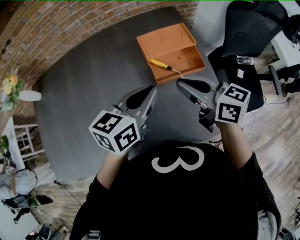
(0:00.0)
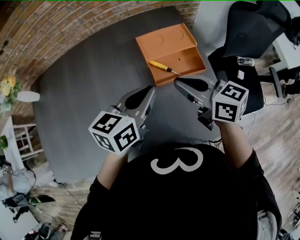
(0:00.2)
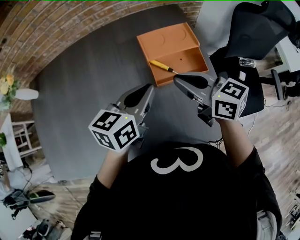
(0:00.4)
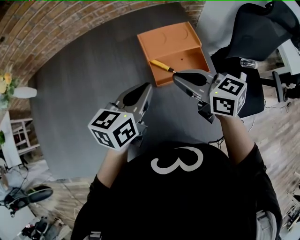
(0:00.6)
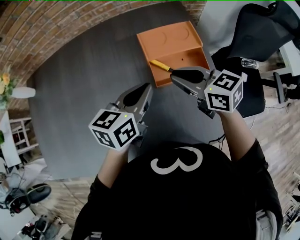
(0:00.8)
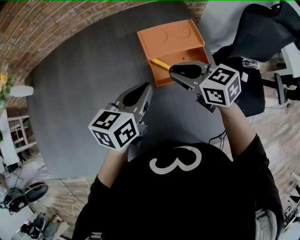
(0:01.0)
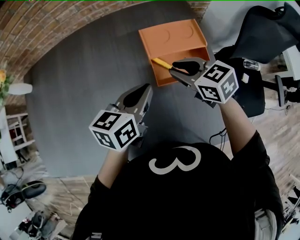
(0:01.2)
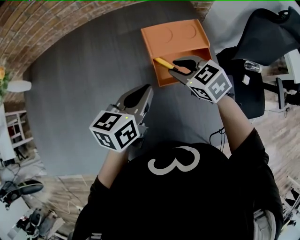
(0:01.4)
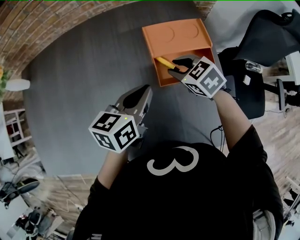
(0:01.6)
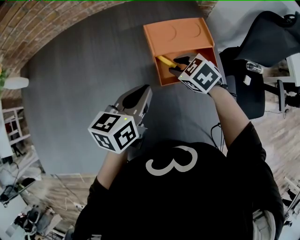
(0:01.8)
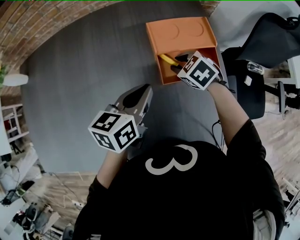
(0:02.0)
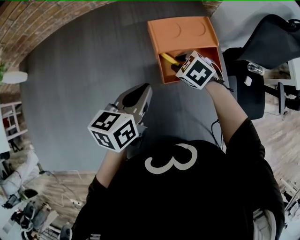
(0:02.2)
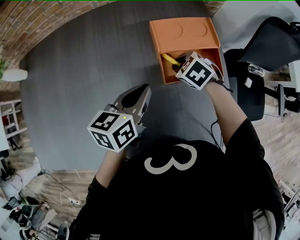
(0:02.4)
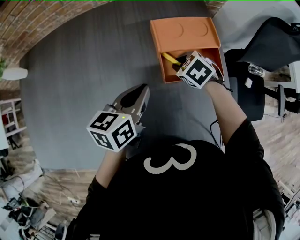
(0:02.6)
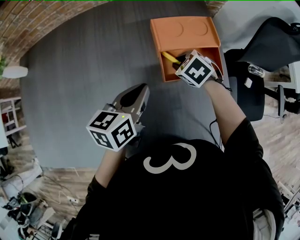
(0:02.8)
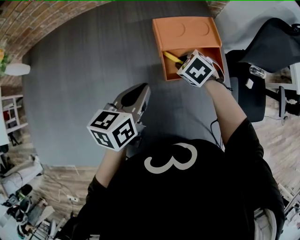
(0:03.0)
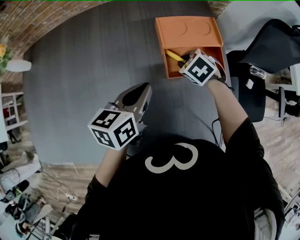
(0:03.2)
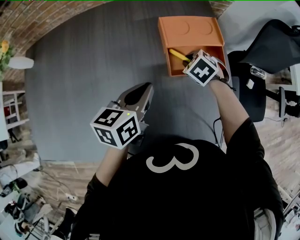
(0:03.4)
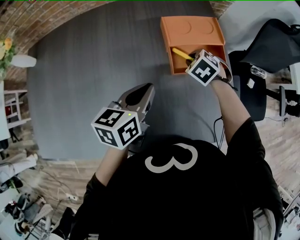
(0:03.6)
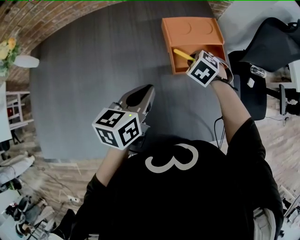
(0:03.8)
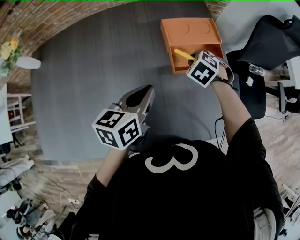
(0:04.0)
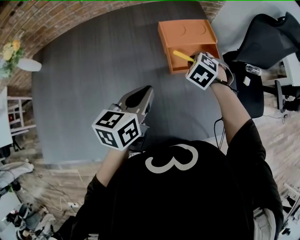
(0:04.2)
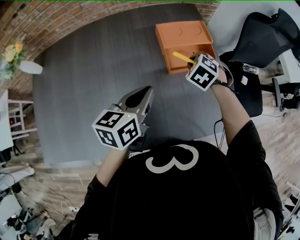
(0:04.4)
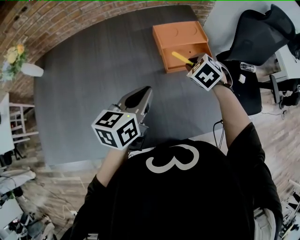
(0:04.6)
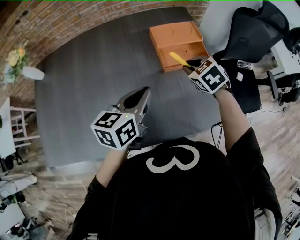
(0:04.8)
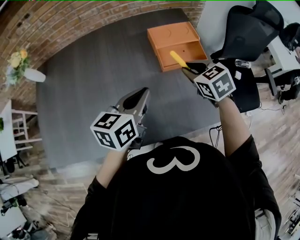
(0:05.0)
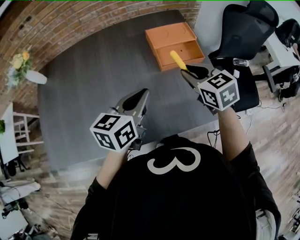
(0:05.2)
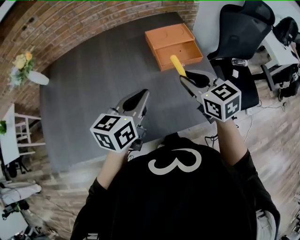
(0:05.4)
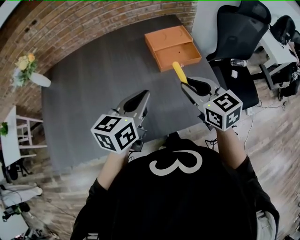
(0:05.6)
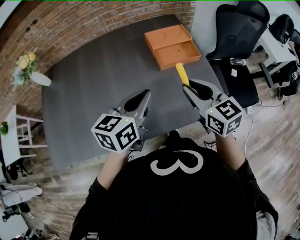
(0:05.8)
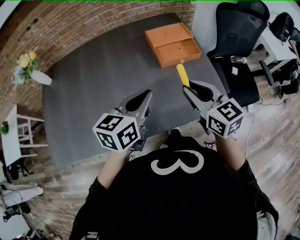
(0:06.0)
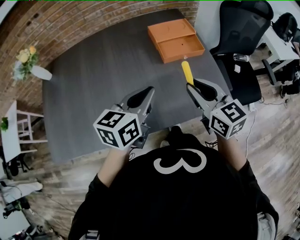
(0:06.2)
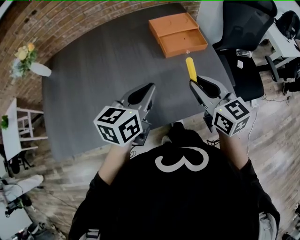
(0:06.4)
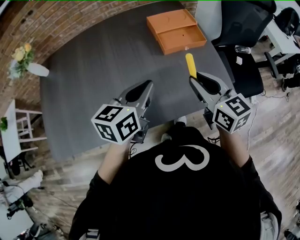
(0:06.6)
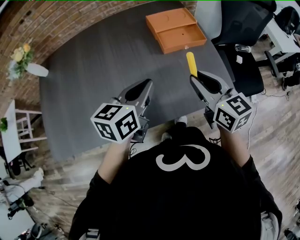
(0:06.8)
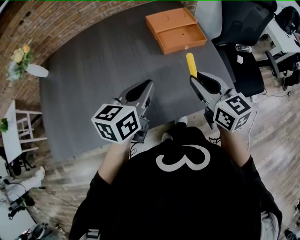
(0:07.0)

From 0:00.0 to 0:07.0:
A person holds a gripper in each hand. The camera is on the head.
From 0:00.0 to 0:01.4: The left gripper is displaced downward and forward by approximately 10 cm, while the right gripper moves downward and forward, roughly 15 cm, angles its fingers downward, by some 30 degrees, and opens up.
From 0:01.4 to 0:02.8: The right gripper shifts about 10 cm downward, and turns by roughly 20 degrees.
From 0:02.8 to 0:04.2: The left gripper goes approximately 5 cm backward. Meanwhile the right gripper travels upward by approximately 5 cm, and changes its angle by some 20 degrees.
From 0:04.2 to 0:05.6: The right gripper heads backward and upward, covering roughly 25 cm, and tips its fingers upward by roughly 40 degrees. The left gripper shifts about 10 cm backward and upward.
From 0:05.6 to 0:07.0: There are only small adjustments of the grippers.

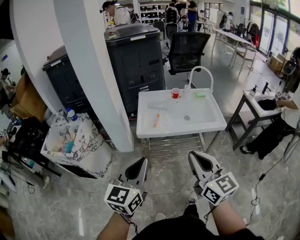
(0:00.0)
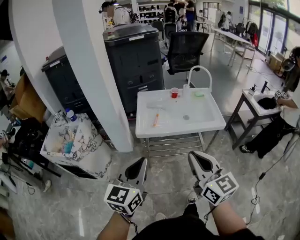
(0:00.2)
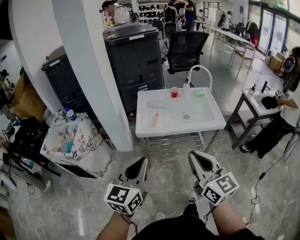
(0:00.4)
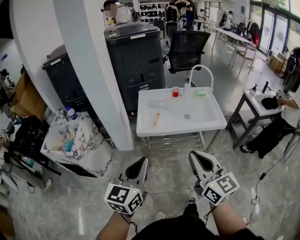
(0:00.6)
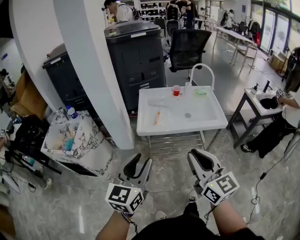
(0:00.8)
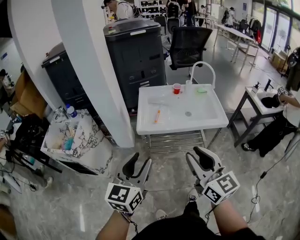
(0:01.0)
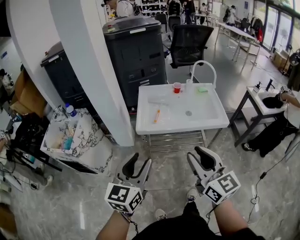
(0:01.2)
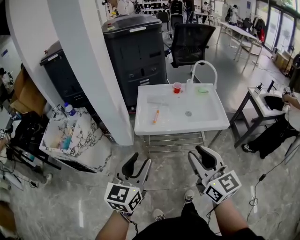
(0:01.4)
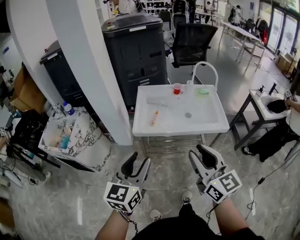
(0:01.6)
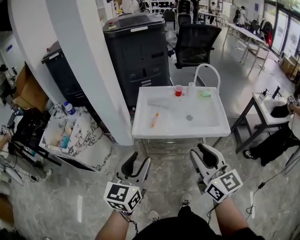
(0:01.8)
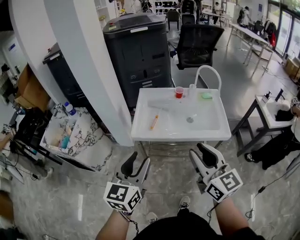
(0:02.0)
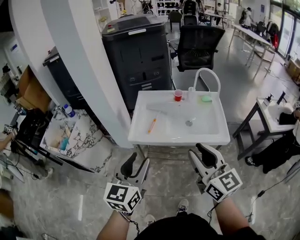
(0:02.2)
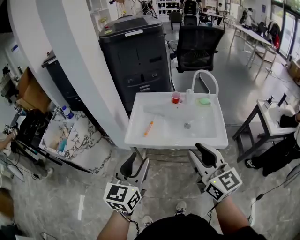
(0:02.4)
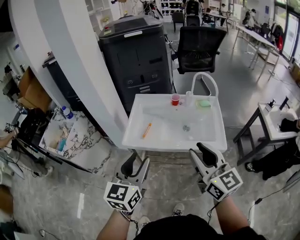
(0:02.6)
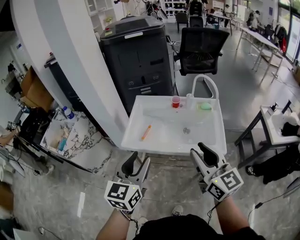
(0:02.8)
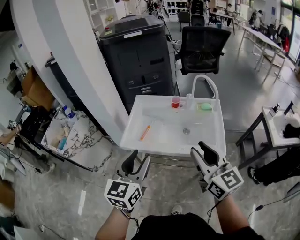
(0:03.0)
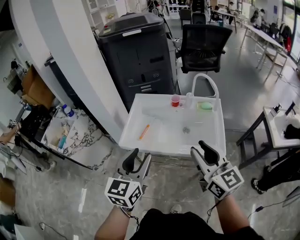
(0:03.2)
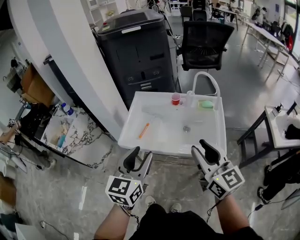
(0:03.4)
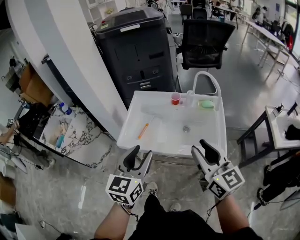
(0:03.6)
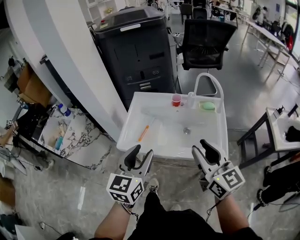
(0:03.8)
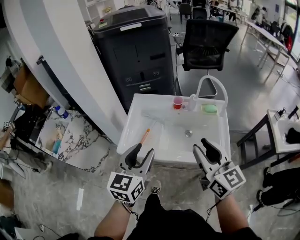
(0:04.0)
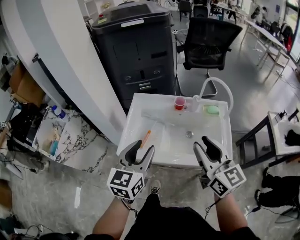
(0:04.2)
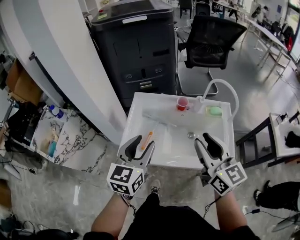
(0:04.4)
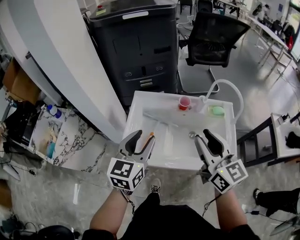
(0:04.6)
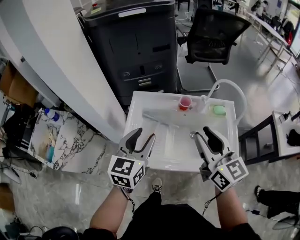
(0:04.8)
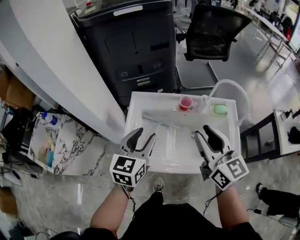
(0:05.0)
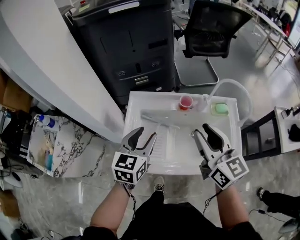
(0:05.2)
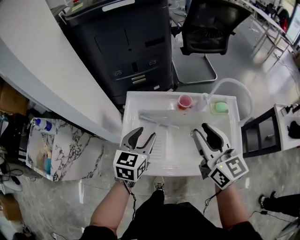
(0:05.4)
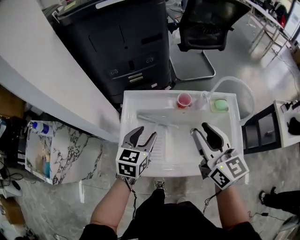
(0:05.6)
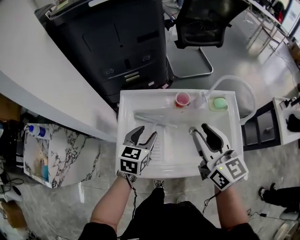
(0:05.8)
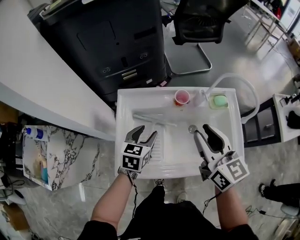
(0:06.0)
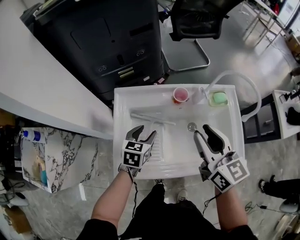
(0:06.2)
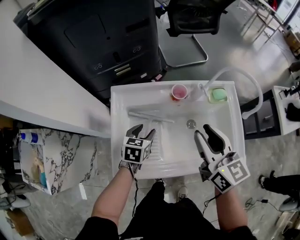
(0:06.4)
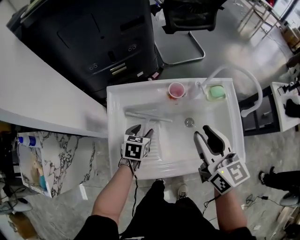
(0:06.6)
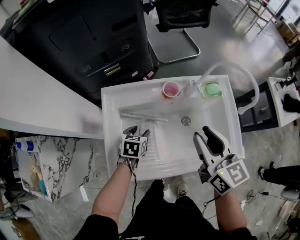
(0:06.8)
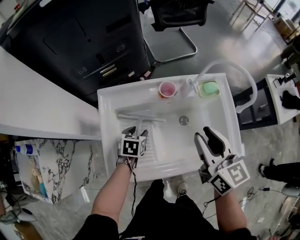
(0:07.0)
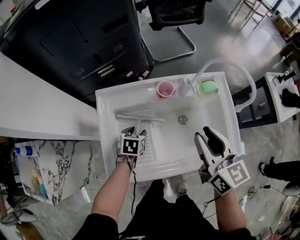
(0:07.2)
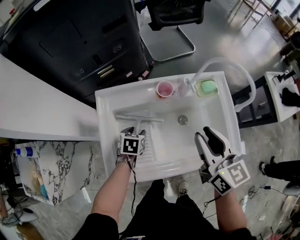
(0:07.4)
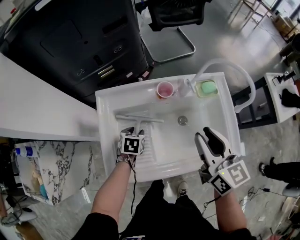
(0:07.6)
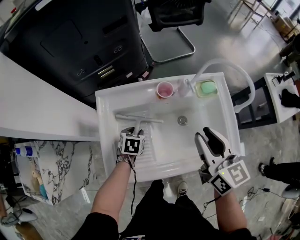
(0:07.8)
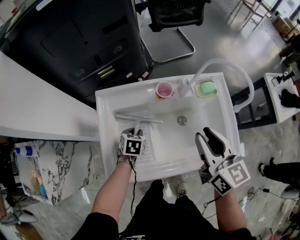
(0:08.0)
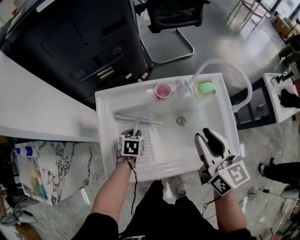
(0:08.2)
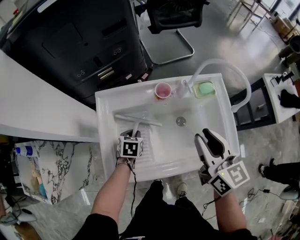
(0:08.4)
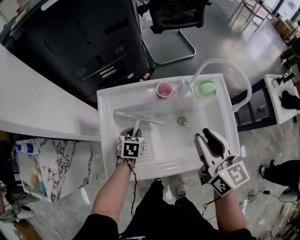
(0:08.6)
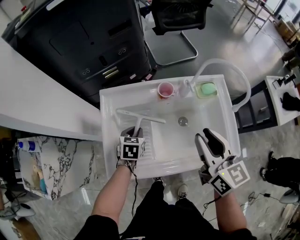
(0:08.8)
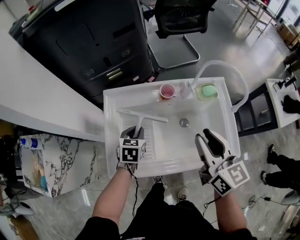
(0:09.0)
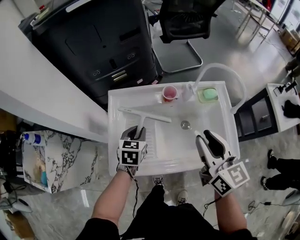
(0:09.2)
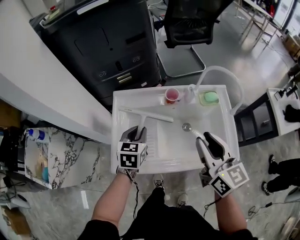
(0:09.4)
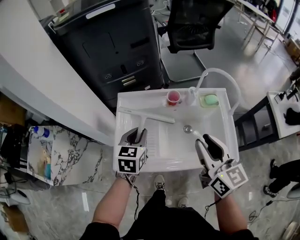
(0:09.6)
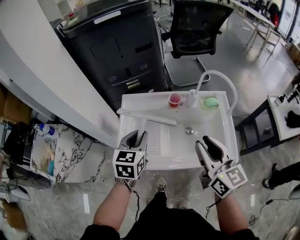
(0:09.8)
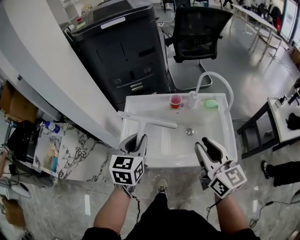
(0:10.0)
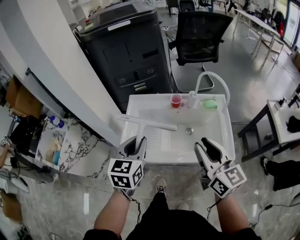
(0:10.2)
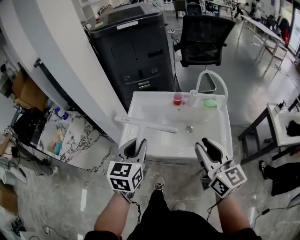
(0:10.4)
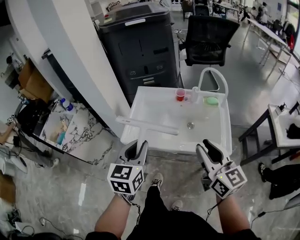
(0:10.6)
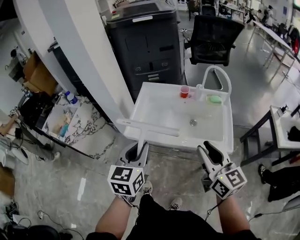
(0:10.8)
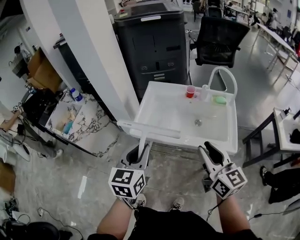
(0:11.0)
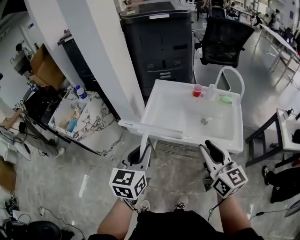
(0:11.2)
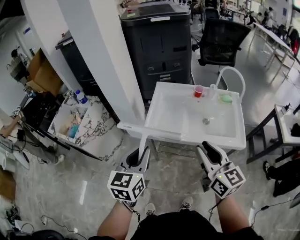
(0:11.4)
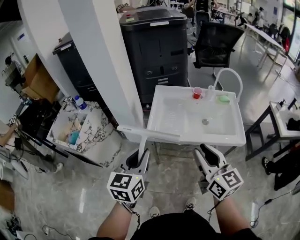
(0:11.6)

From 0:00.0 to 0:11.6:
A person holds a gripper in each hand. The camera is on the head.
From 0:00.0 to 0:01.4: The left gripper opens up, while the right gripper moves some 5 cm, and opens its fingers.
From 0:01.4 to 0:02.8: The grippers both shift to the right and forward by roughly 20 cm.
From 0:02.8 to 0:04.4: Both grippers move forward, about 20 cm.
From 0:04.4 to 0:05.8: The left gripper shifts approximately 25 cm forward and downward, and swivels some 20 degrees, while the right gripper travels forward and downward by approximately 15 cm.
From 0:05.8 to 0:07.2: The right gripper travels to the right and downward by roughly 10 cm. Meanwhile the left gripper is displaced downward by about 20 cm, and changes its angle by some 30 degrees.
From 0:07.2 to 0:08.8: The left gripper closes up.
From 0:08.8 to 0:10.2: The left gripper moves upward and backward, about 35 cm, and points its fingers about 30 degrees further upward, while the right gripper heads backward and upward, covering some 15 cm.
From 0:10.2 to 0:11.6: The right gripper is displaced to the left and backward by about 25 cm. The left gripper heads backward and to the left, covering some 25 cm.

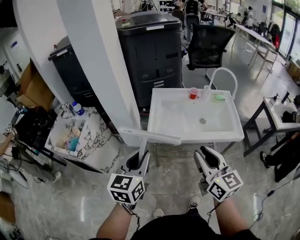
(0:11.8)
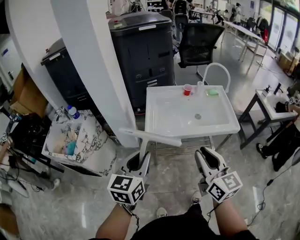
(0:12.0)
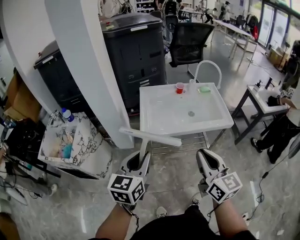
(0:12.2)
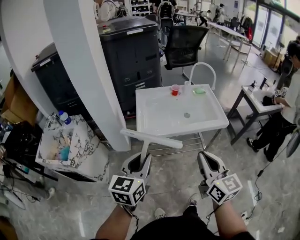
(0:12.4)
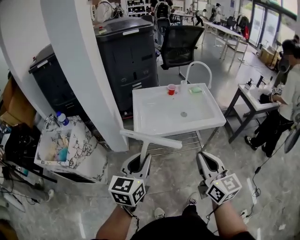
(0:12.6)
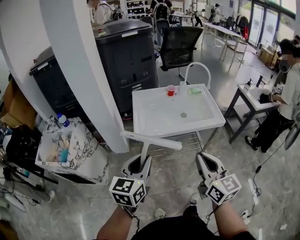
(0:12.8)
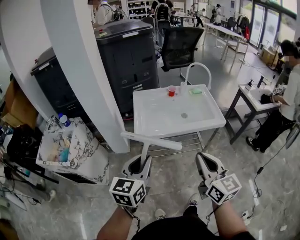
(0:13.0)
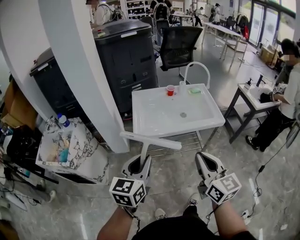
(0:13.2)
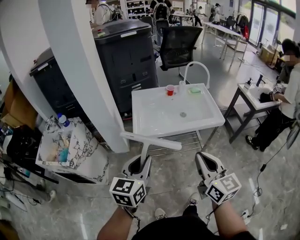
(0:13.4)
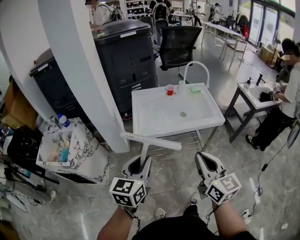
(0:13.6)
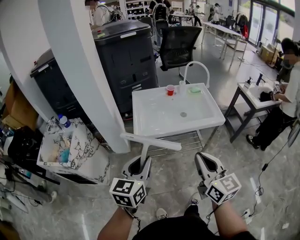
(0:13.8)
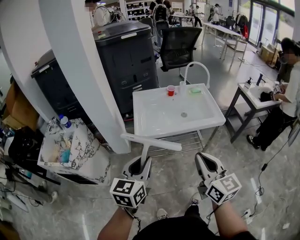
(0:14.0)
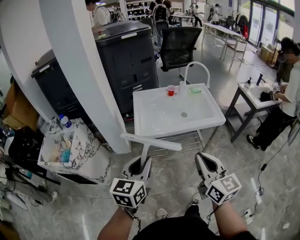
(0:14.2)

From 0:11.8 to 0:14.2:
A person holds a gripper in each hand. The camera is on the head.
From 0:11.8 to 0:13.0: The left gripper moves backward, about 5 cm. Meanwhile the right gripper is displaced backward by roughly 10 cm, and closes its fingers.
From 0:13.0 to 0:14.2: Both grippers stay put.

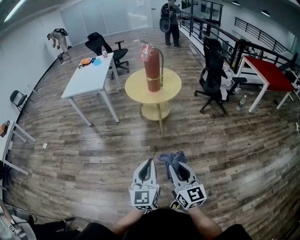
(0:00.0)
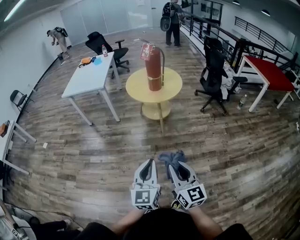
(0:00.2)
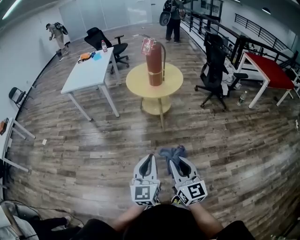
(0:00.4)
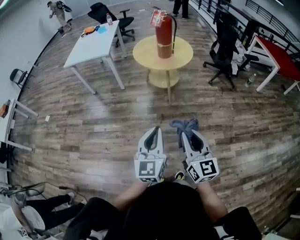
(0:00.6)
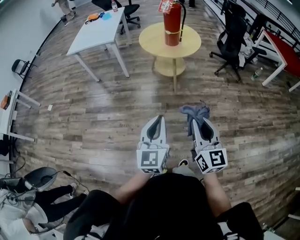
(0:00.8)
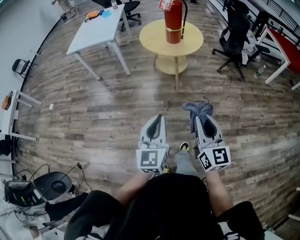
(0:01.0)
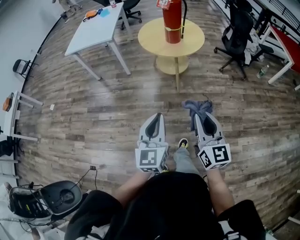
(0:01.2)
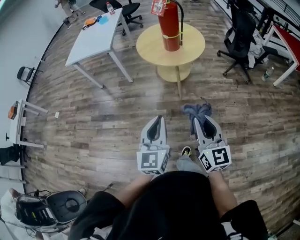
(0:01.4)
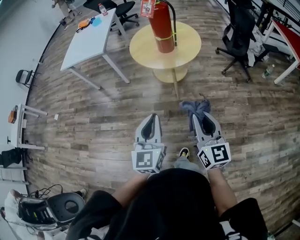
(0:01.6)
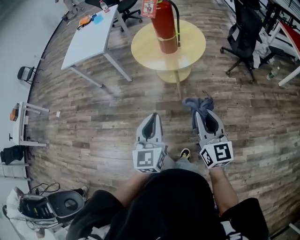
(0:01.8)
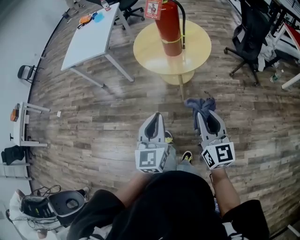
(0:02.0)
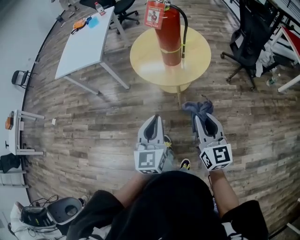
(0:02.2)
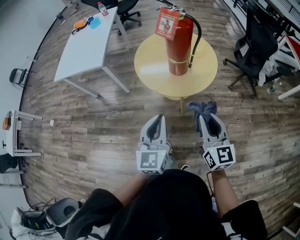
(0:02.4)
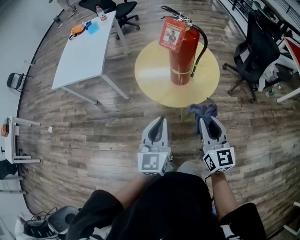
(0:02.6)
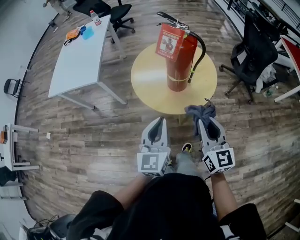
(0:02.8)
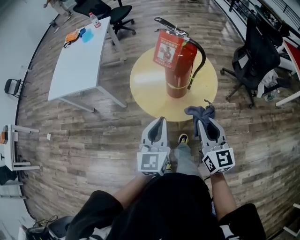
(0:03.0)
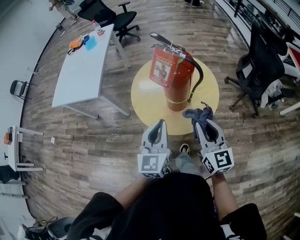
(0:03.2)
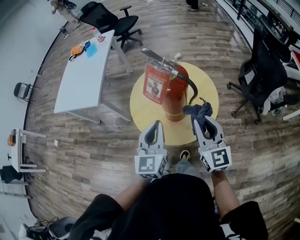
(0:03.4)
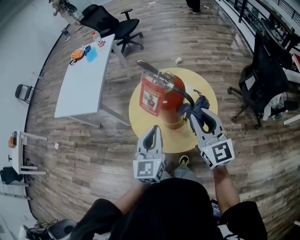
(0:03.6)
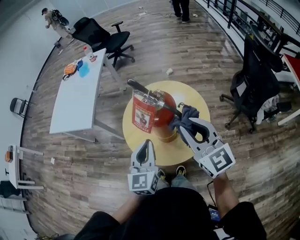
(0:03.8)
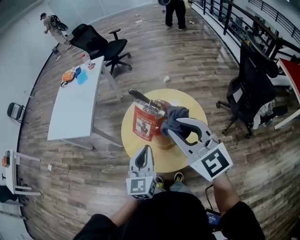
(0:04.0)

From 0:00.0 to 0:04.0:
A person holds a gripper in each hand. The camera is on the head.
From 0:00.0 to 0:01.4: The two grippers go approximately 20 cm forward.
From 0:01.4 to 0:02.6: Both grippers travel together forward, about 40 cm.
From 0:02.6 to 0:04.0: The right gripper is displaced forward and upward by some 30 cm, and changes its angle by roughly 30 degrees, while the left gripper moves forward, approximately 25 cm.
